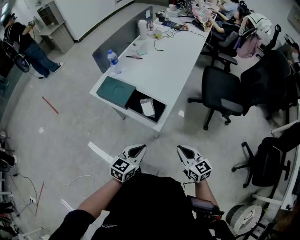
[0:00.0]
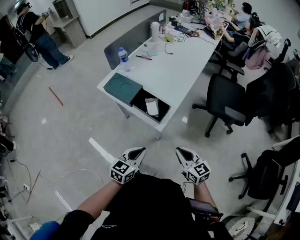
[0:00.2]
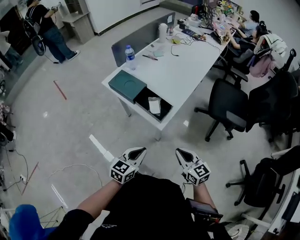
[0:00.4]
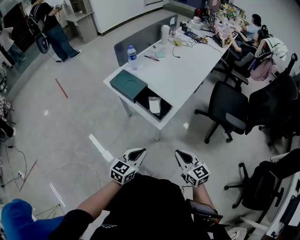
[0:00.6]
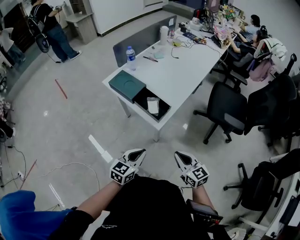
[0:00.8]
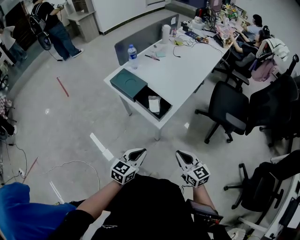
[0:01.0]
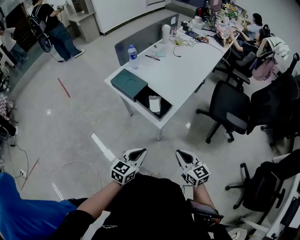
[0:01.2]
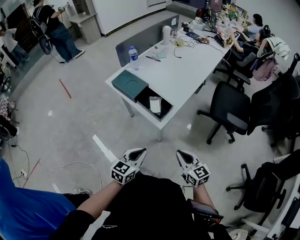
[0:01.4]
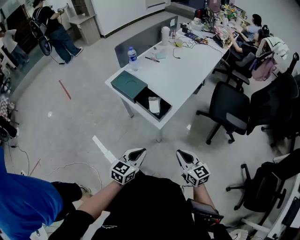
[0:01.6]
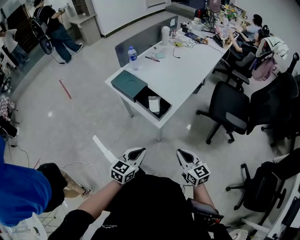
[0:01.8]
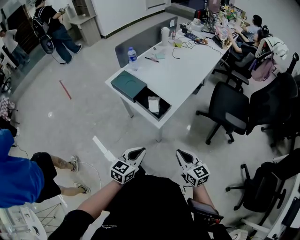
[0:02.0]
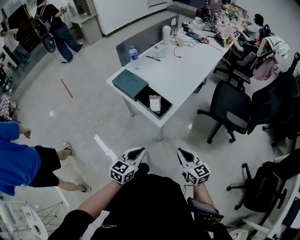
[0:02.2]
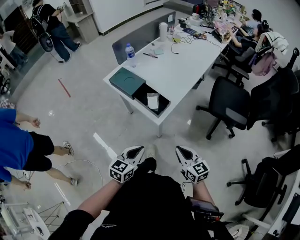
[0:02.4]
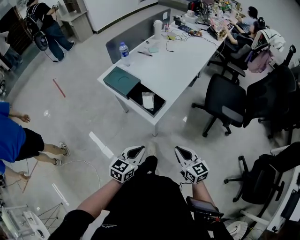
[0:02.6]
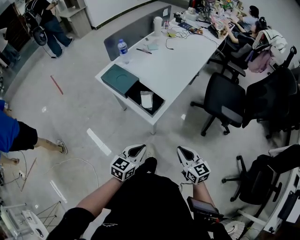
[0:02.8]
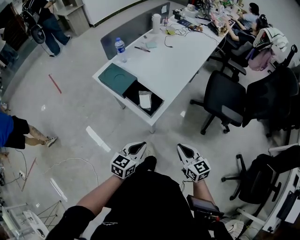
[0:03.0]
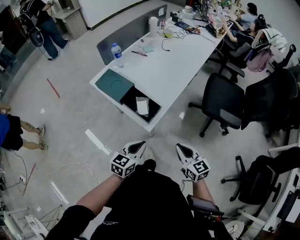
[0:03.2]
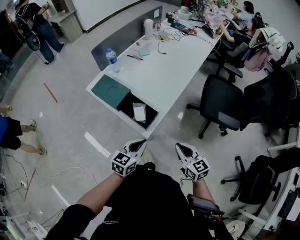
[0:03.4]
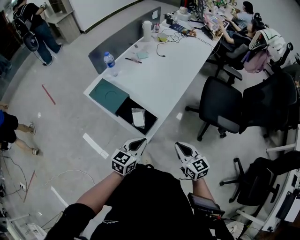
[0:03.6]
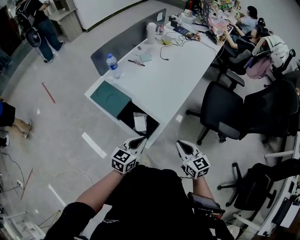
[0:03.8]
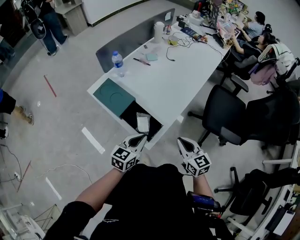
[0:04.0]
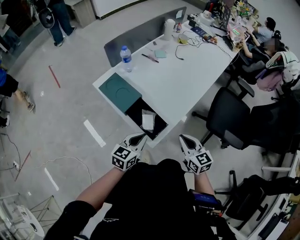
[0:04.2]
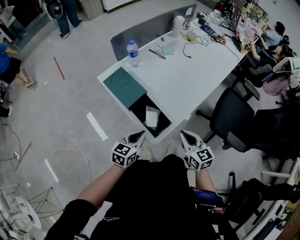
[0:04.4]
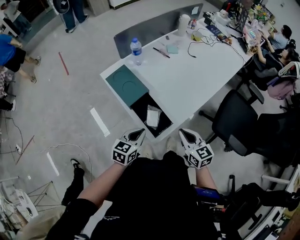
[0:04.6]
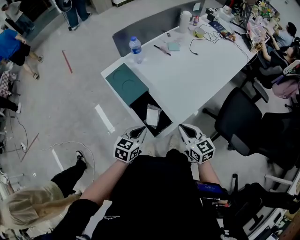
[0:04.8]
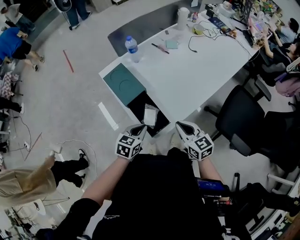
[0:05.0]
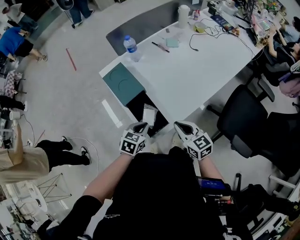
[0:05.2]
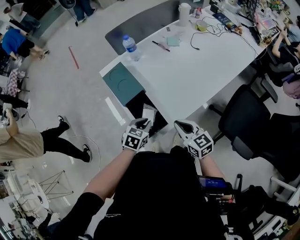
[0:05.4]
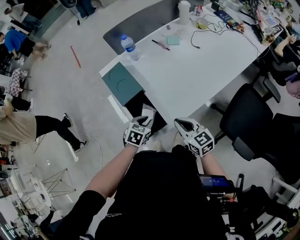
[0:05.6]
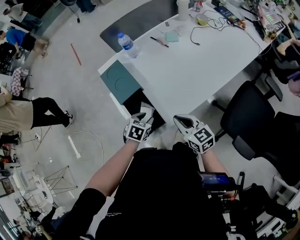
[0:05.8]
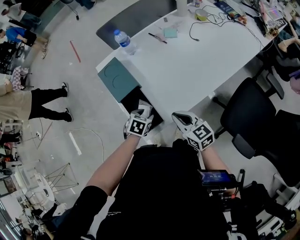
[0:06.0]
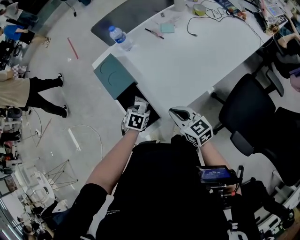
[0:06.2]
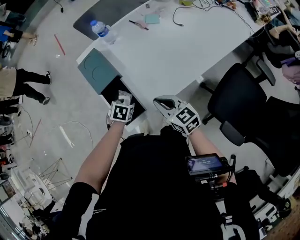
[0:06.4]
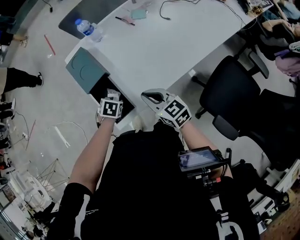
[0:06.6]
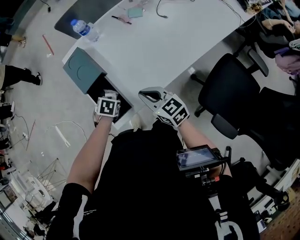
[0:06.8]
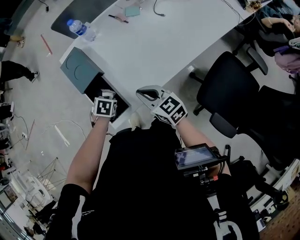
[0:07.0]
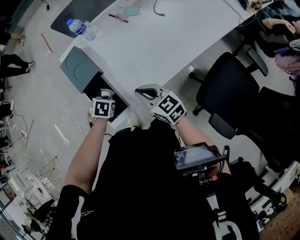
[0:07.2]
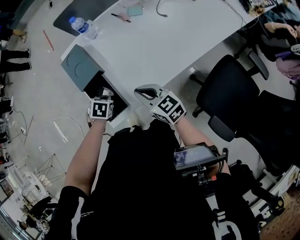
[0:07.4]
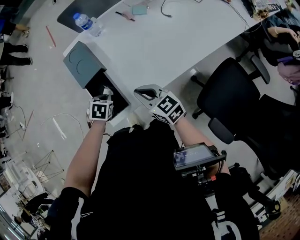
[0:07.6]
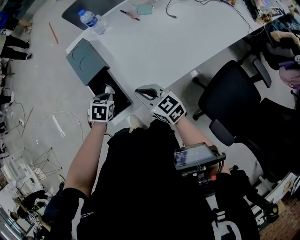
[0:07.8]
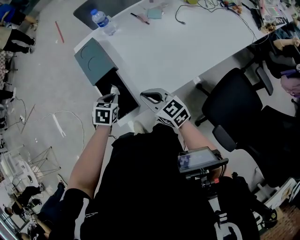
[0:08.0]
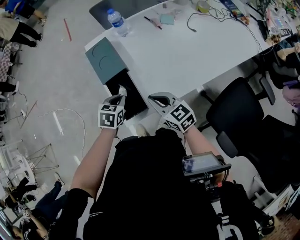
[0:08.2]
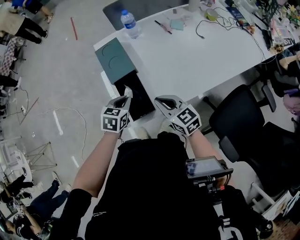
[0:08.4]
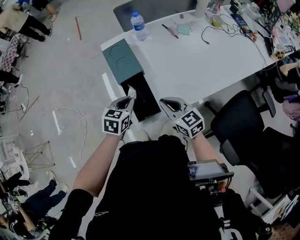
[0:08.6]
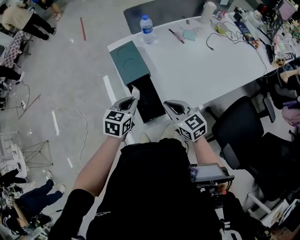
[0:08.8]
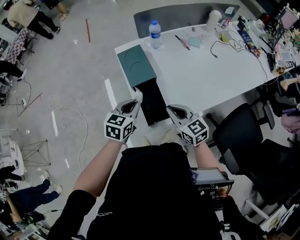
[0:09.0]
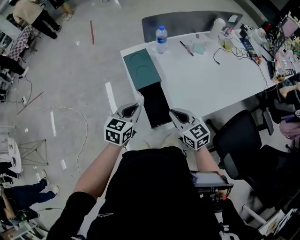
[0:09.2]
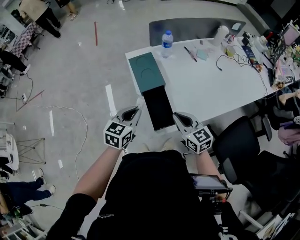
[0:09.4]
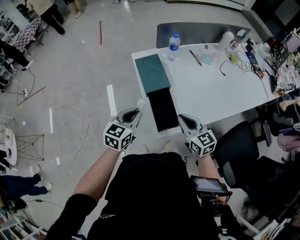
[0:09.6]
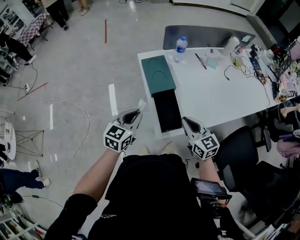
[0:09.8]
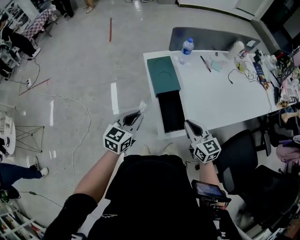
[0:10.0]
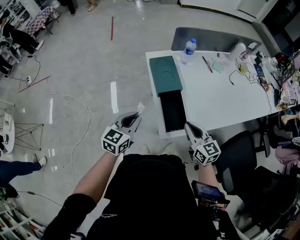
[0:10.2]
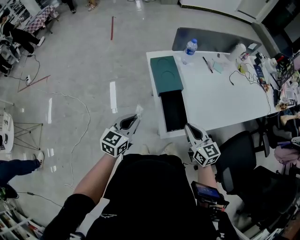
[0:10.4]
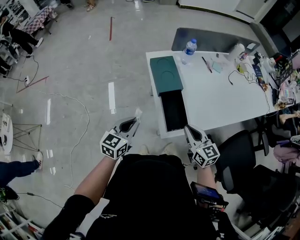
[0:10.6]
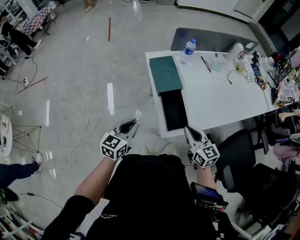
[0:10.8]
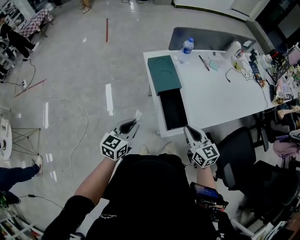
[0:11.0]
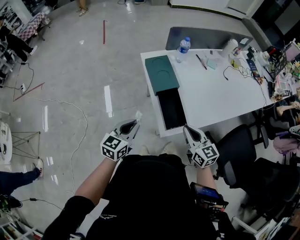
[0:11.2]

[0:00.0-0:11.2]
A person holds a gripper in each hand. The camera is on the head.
0:00.0 to 0:01.6: The right gripper changes place by about 5 cm, while the left gripper heads backward, covering roughly 5 cm.
0:01.6 to 0:03.2: The grippers both shift forward by about 5 cm.
0:03.2 to 0:04.8: The two grippers go approximately 20 cm forward.
0:04.8 to 0:06.4: The right gripper ends up some 10 cm from where it was, and swivels roughly 20 degrees; the left gripper heads downward, covering roughly 10 cm, angles its fingers downward, by some 40 degrees, and opens.
0:06.4 to 0:08.0: The left gripper heads upward, covering roughly 5 cm, and closes.
0:08.0 to 0:09.6: The right gripper heads to the left and upward, covering about 10 cm, while the left gripper heads upward and to the left, covering about 20 cm, and tips its fingers upward by approximately 40 degrees.
0:09.6 to 0:11.2: The right gripper travels backward by roughly 5 cm. Meanwhile the left gripper travels backward and to the left by some 10 cm.

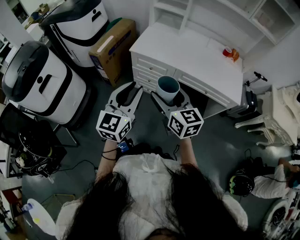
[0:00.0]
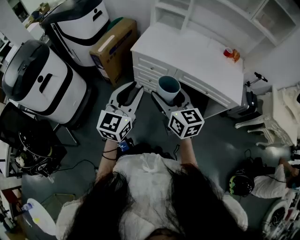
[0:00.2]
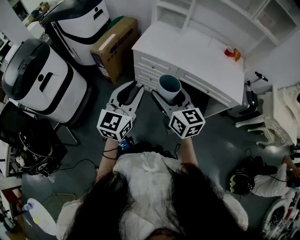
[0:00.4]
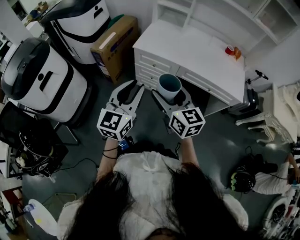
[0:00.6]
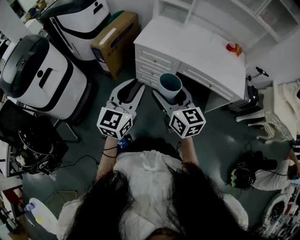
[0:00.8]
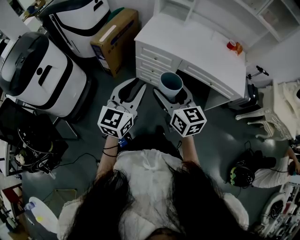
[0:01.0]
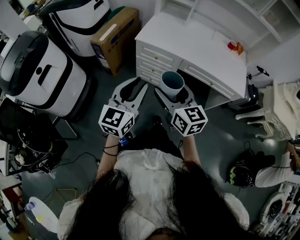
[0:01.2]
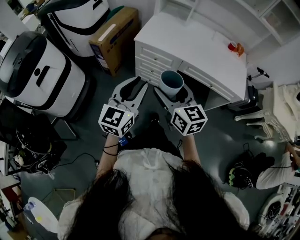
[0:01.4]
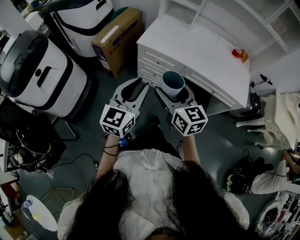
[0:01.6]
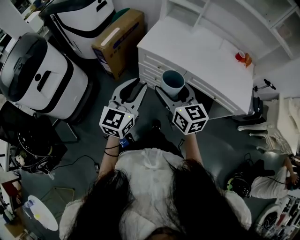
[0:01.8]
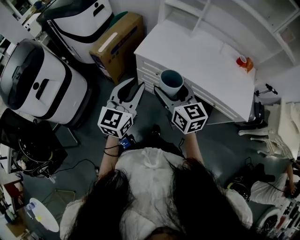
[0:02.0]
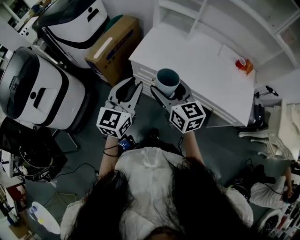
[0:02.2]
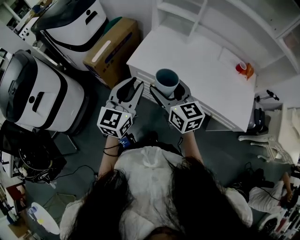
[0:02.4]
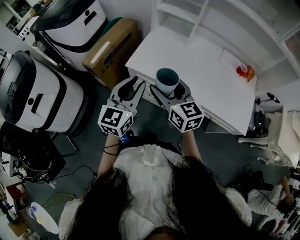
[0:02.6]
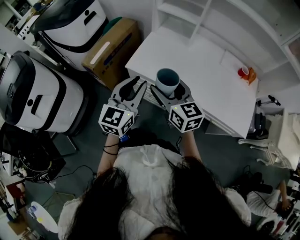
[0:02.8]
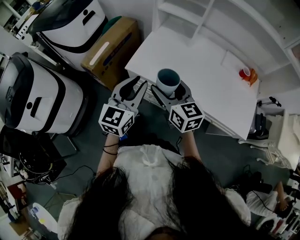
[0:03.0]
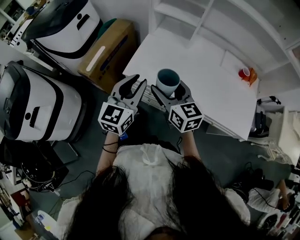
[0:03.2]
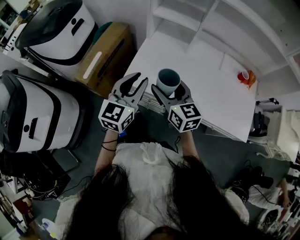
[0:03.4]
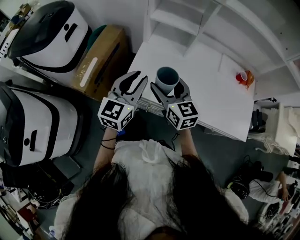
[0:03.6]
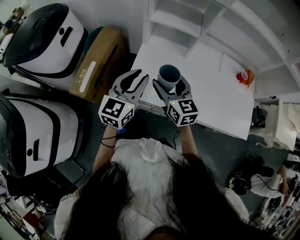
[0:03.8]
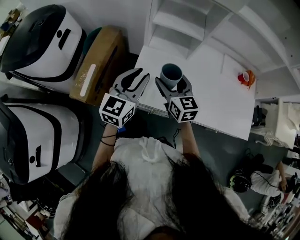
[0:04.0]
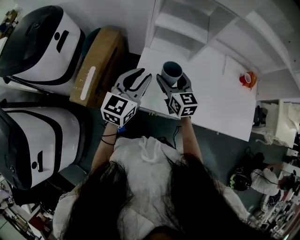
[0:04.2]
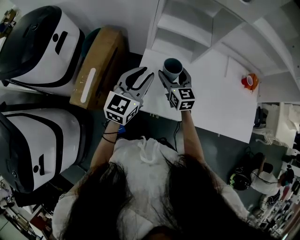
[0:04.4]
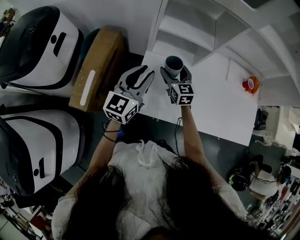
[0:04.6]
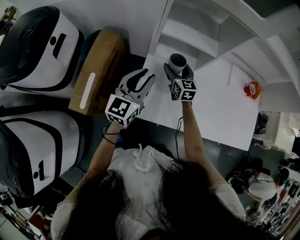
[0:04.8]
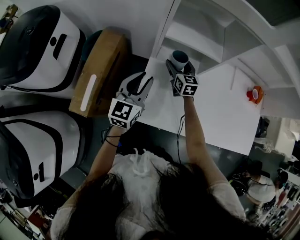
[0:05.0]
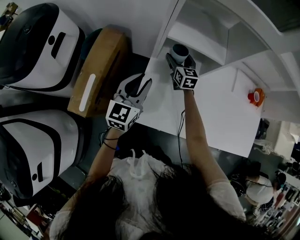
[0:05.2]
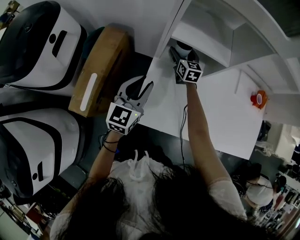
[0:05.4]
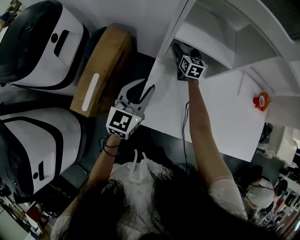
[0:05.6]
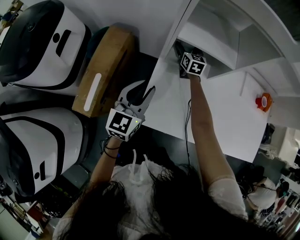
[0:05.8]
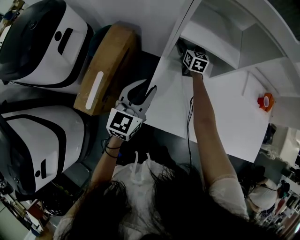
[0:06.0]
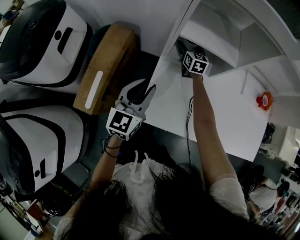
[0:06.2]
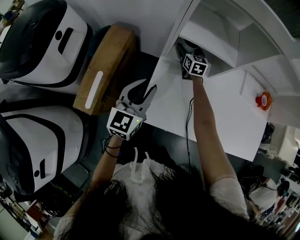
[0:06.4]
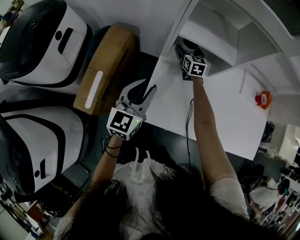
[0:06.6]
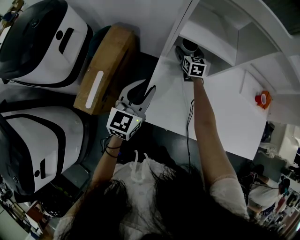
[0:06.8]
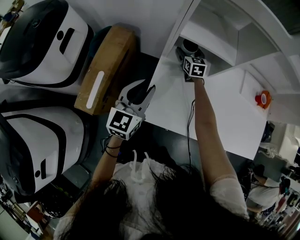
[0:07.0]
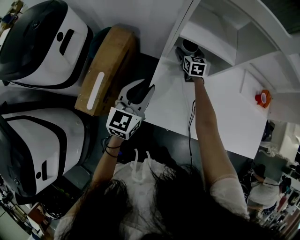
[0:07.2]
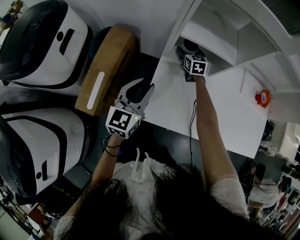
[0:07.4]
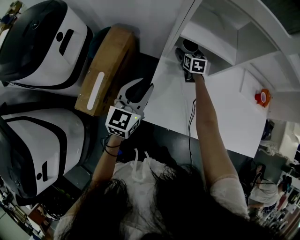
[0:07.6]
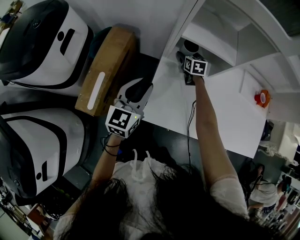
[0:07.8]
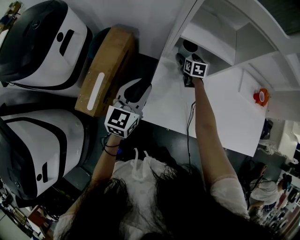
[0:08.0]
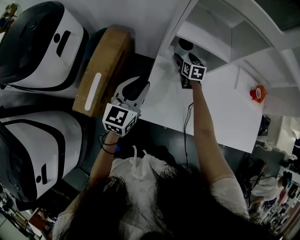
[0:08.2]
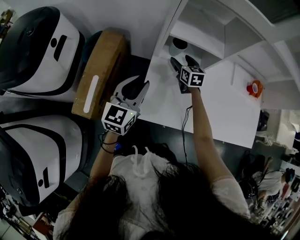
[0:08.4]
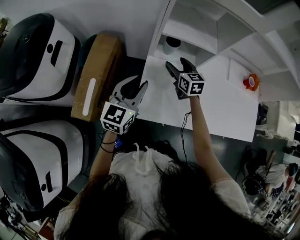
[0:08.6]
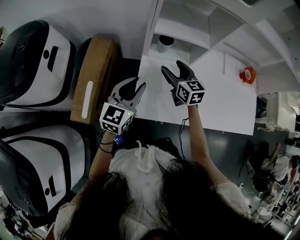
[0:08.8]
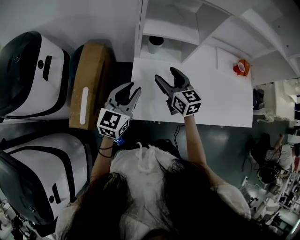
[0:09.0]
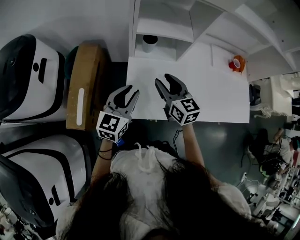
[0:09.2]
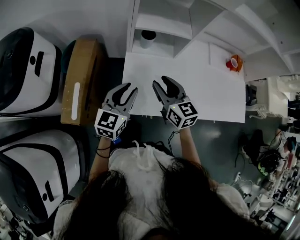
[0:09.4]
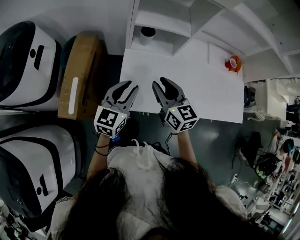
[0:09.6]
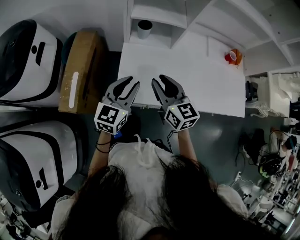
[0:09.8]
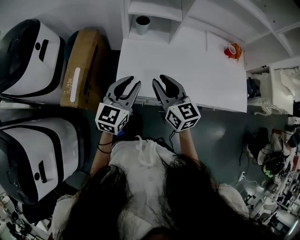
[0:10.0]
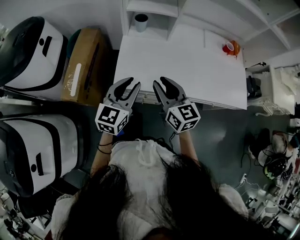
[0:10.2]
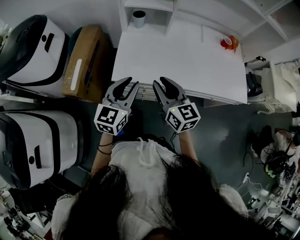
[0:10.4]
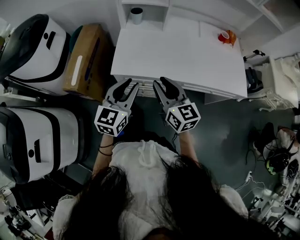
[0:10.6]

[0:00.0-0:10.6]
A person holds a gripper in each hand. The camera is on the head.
0:00.0 to 0:01.6: The right gripper shifts by some 5 cm. Meanwhile the left gripper ends up some 5 cm from where it was.
0:01.6 to 0:03.0: The grippers both shift forward by roughly 25 cm.
0:03.0 to 0:04.6: The right gripper moves forward and downward, roughly 40 cm, and swivels roughly 30 degrees. Meanwhile the left gripper moves forward, roughly 30 cm.
0:04.6 to 0:06.0: The left gripper shifts some 5 cm downward. Meanwhile the right gripper is displaced forward by about 20 cm.
0:06.0 to 0:07.6: The grippers move only a little.
0:07.6 to 0:09.0: The left gripper ends up roughly 5 cm from where it was, while the right gripper shifts some 25 cm backward and upward.
0:09.0 to 0:10.6: The right gripper shifts approximately 30 cm backward, and closes up. Meanwhile the left gripper travels backward and to the right by about 30 cm.

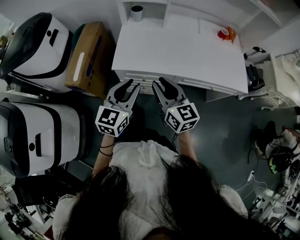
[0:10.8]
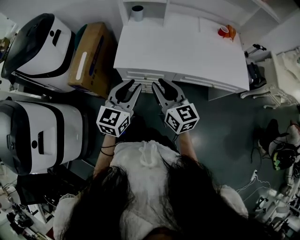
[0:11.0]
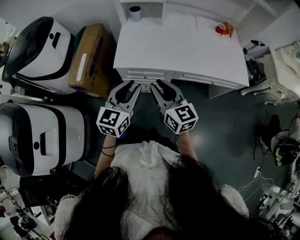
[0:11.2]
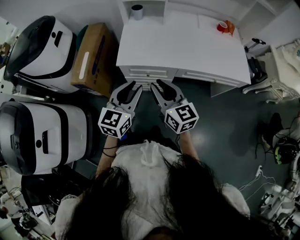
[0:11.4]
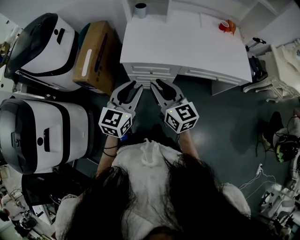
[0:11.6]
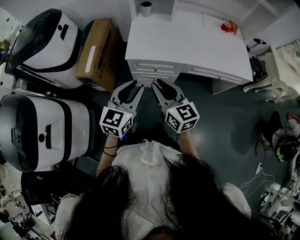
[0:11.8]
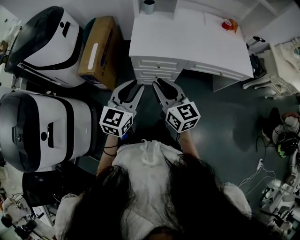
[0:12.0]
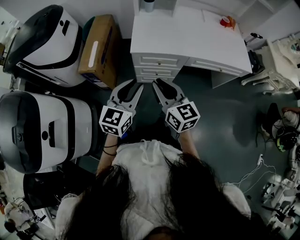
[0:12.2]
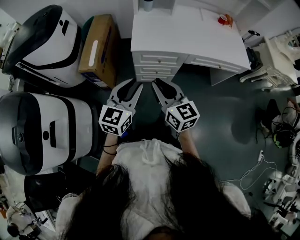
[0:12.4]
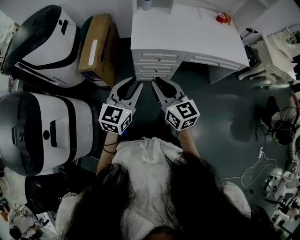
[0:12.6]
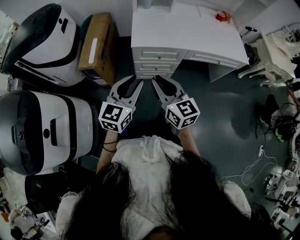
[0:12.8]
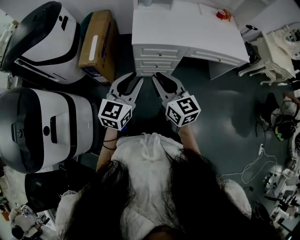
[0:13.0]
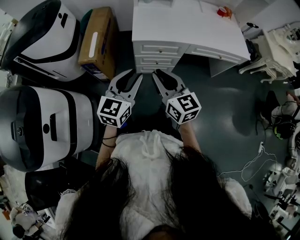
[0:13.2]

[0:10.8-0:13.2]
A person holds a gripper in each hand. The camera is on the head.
0:10.8 to 0:12.0: The left gripper goes about 15 cm backward and to the left. The right gripper travels to the left and backward by approximately 15 cm.
0:12.0 to 0:13.2: The left gripper moves to the left, some 5 cm. The right gripper moves backward and to the left, about 10 cm.
